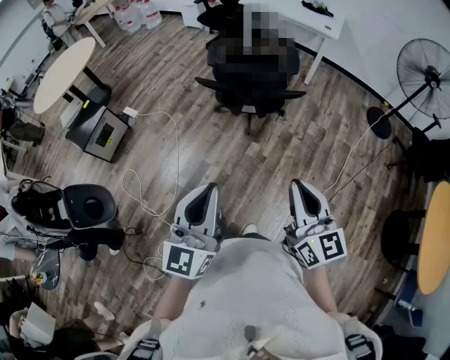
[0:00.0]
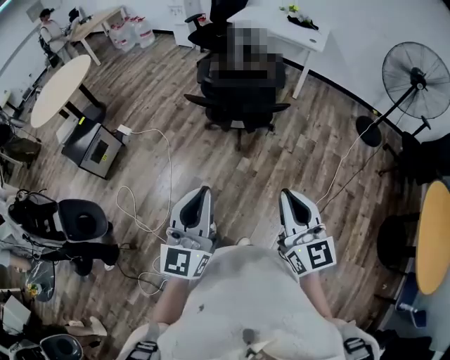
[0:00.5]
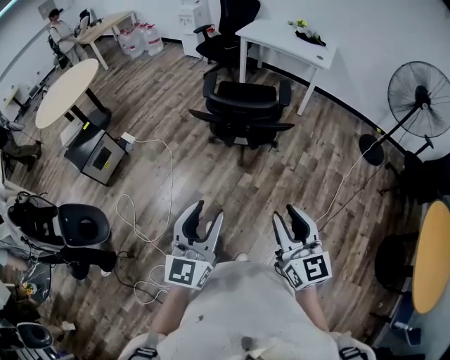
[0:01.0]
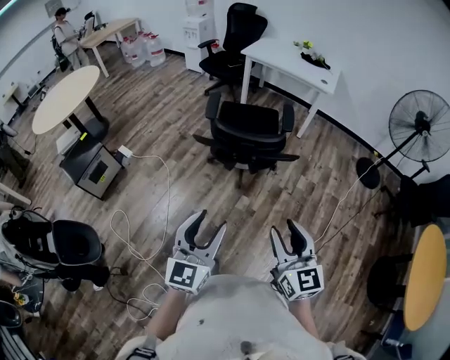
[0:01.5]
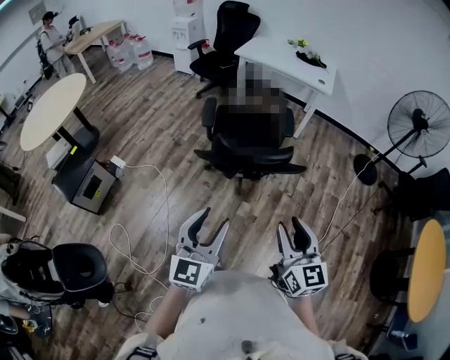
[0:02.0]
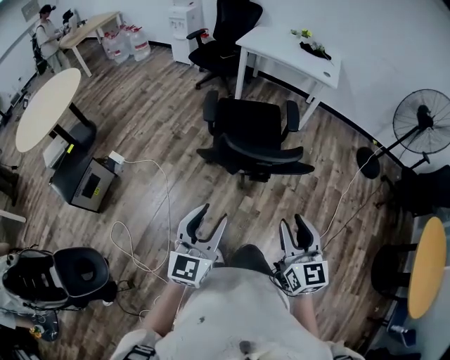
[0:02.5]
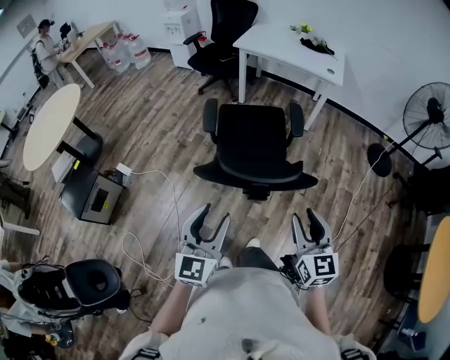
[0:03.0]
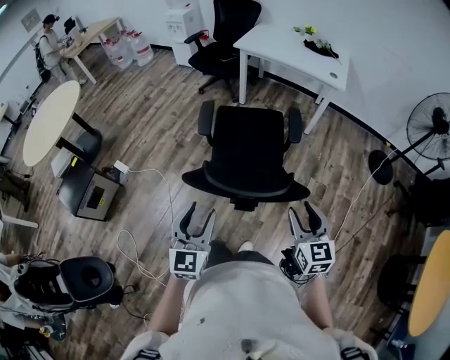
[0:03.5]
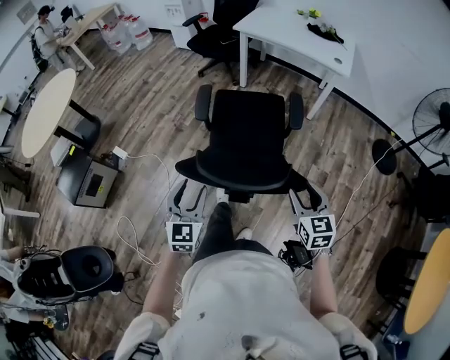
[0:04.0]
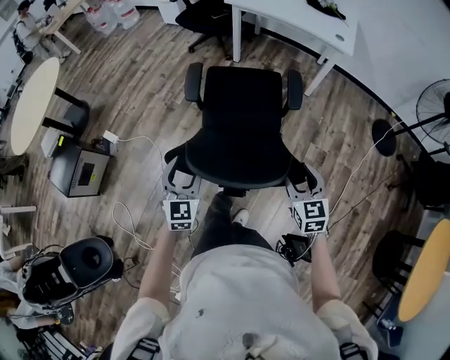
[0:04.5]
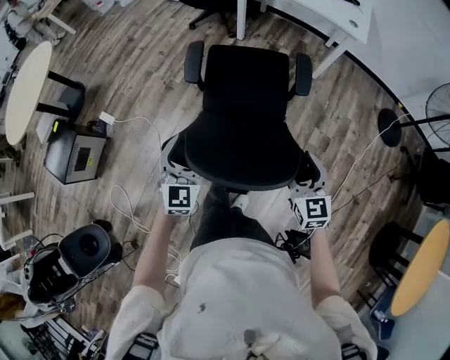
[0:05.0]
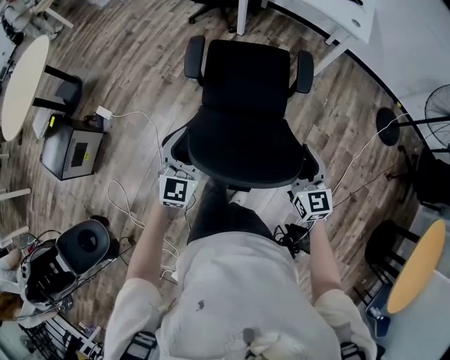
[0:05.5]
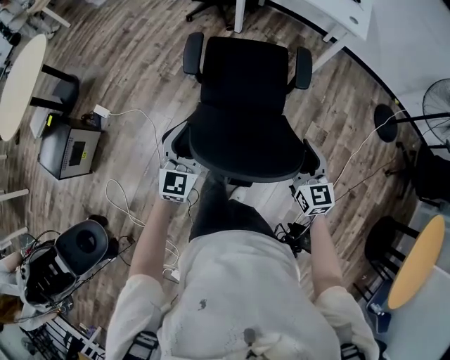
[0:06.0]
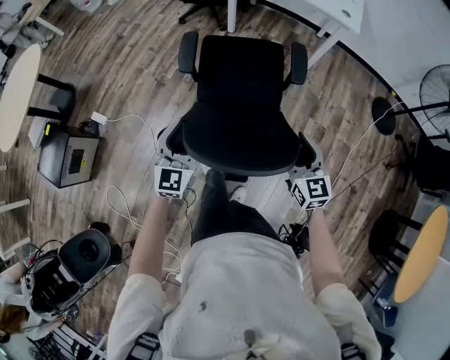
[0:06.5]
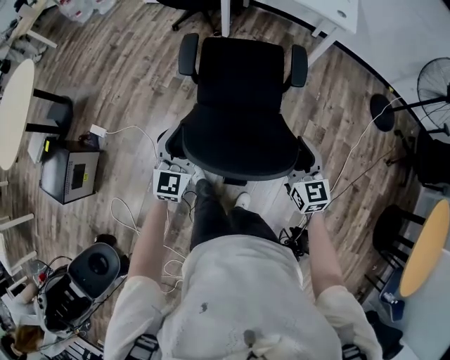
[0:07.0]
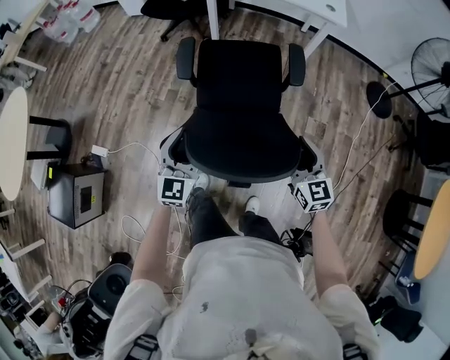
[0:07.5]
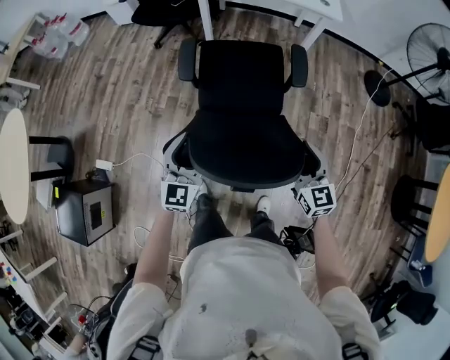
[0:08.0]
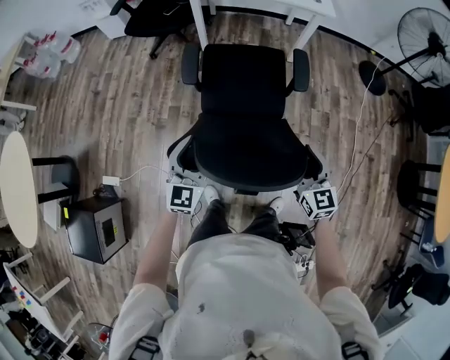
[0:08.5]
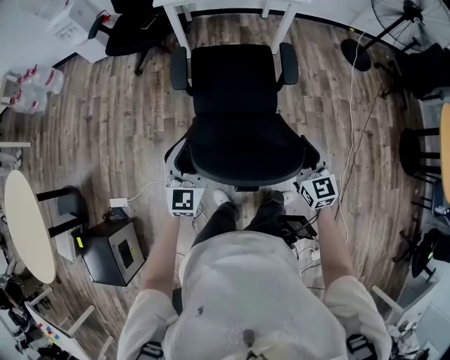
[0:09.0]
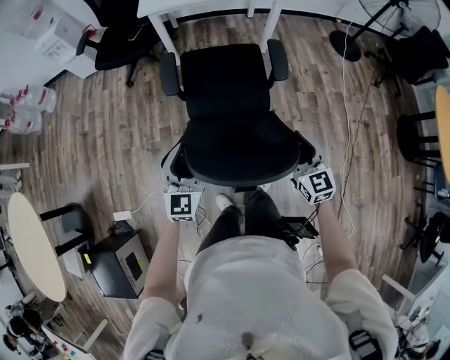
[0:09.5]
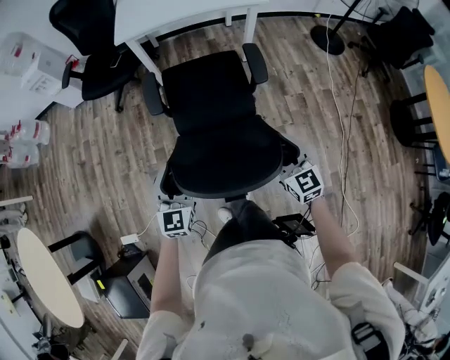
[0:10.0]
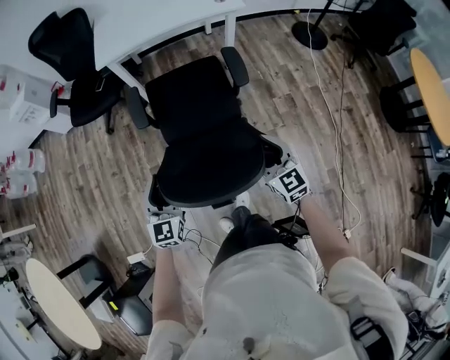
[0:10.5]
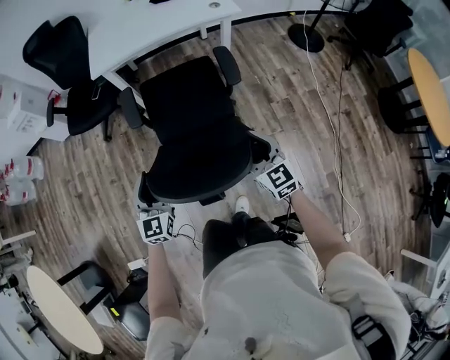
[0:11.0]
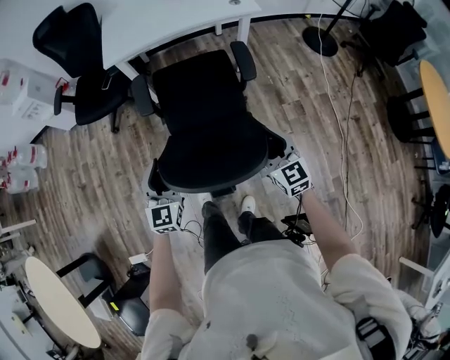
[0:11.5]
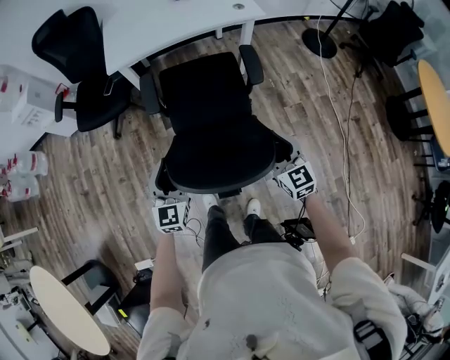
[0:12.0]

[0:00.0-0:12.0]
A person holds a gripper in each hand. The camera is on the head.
0:00.0 to 0:02.0: Both grippers move forward, roughly 25 cm. The right gripper opens up. The left gripper opens.
0:02.0 to 0:04.0: The left gripper travels forward by about 35 cm, and changes its angle by some 20 degrees; the right gripper moves forward and to the right, about 40 cm.
0:04.0 to 0:06.0: The grippers both shift forward and downward by approximately 20 cm.
0:06.0 to 0:08.0: Both grippers move forward and to the left, approximately 20 cm.
0:08.0 to 0:10.0: The right gripper heads to the left and forward, covering about 10 cm. Meanwhile the left gripper is displaced forward and to the left by some 15 cm.
0:10.0 to 0:12.0: Both grippers move forward, roughly 20 cm.

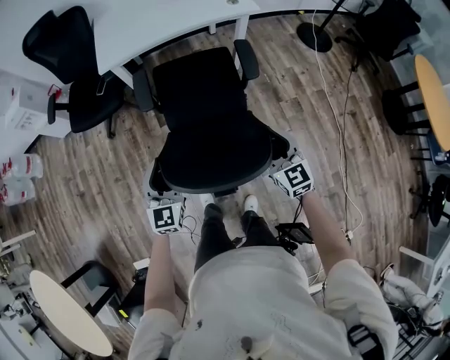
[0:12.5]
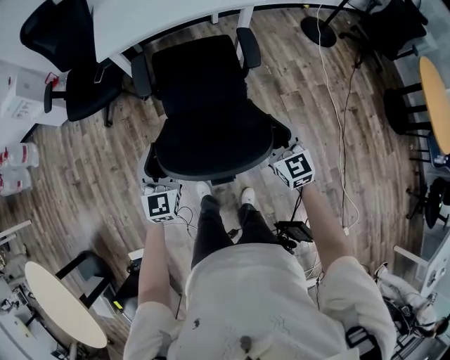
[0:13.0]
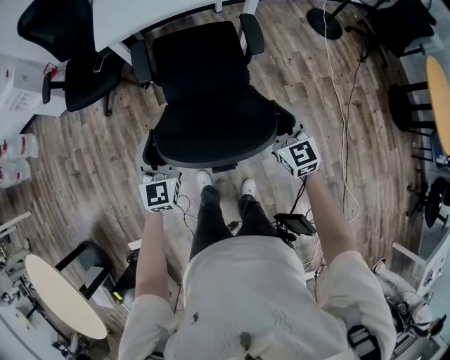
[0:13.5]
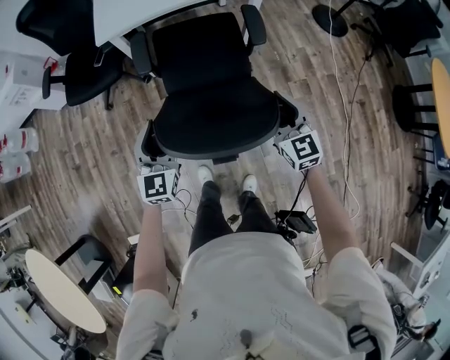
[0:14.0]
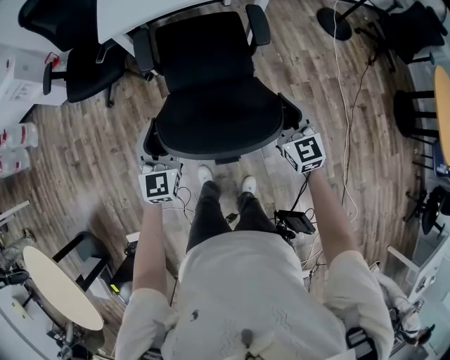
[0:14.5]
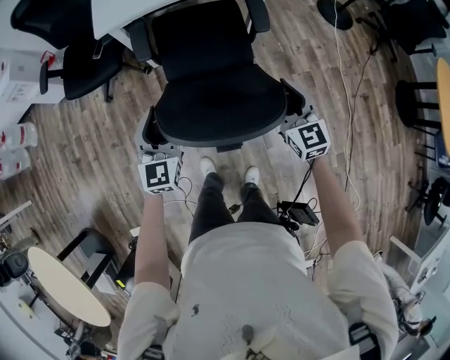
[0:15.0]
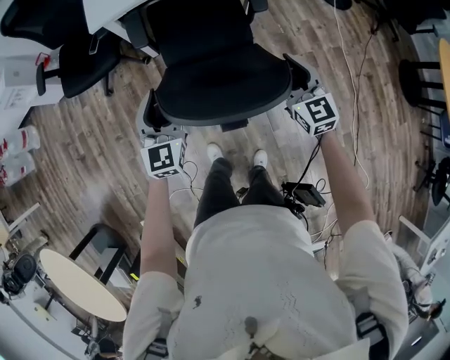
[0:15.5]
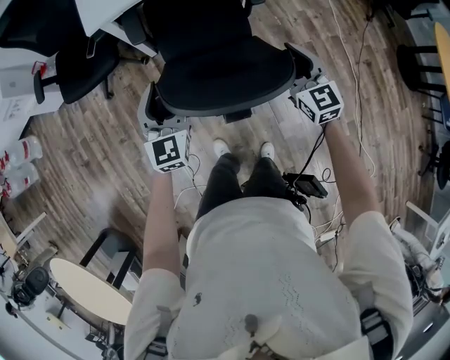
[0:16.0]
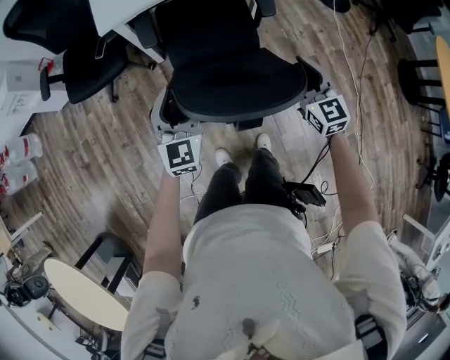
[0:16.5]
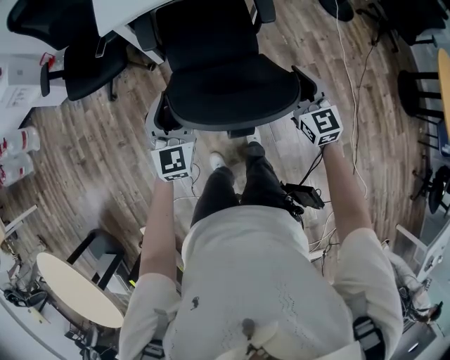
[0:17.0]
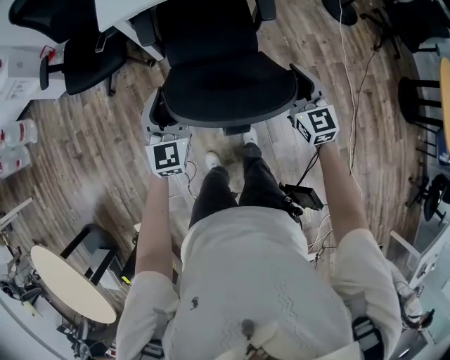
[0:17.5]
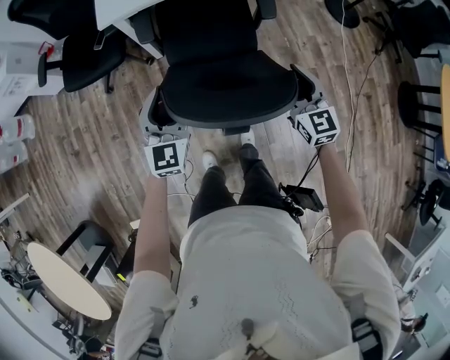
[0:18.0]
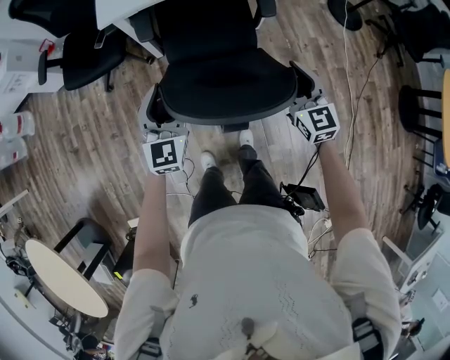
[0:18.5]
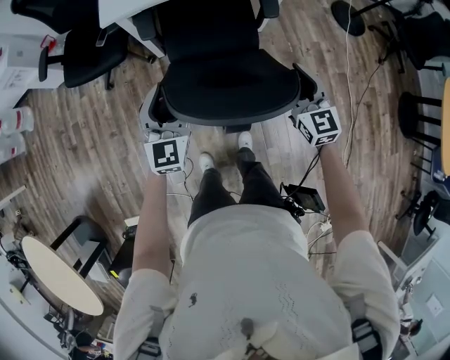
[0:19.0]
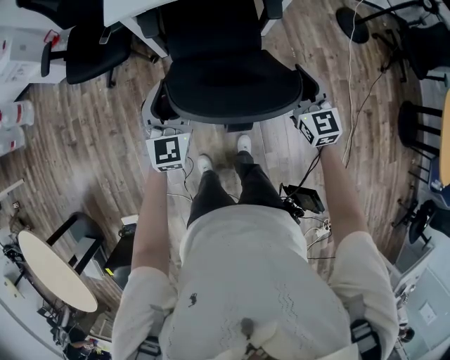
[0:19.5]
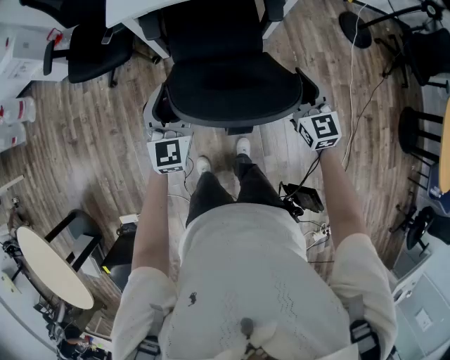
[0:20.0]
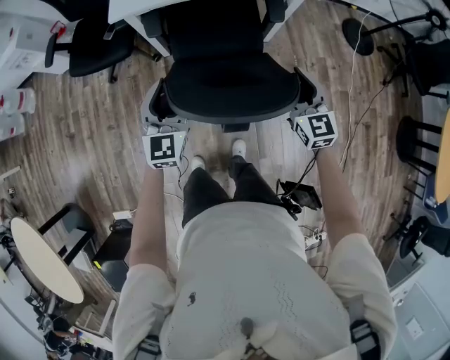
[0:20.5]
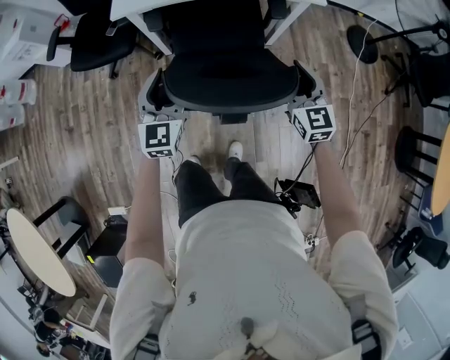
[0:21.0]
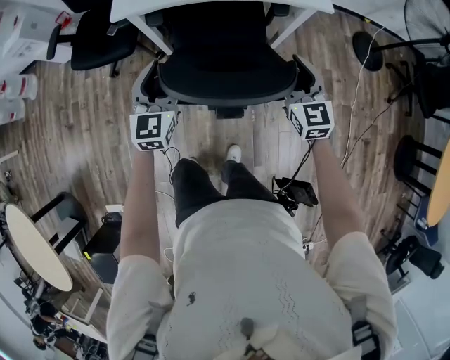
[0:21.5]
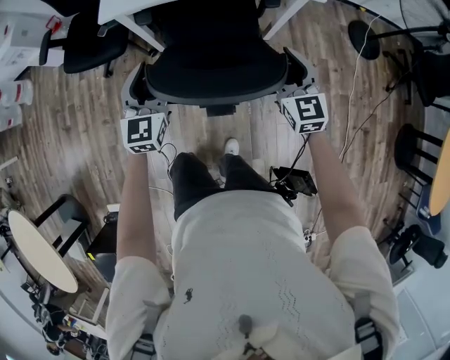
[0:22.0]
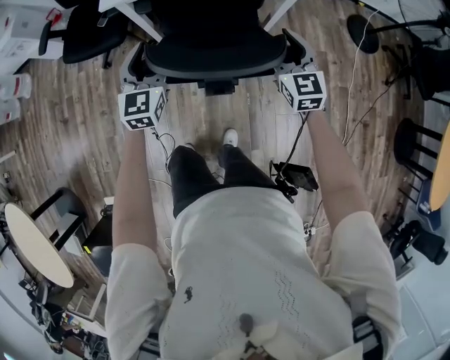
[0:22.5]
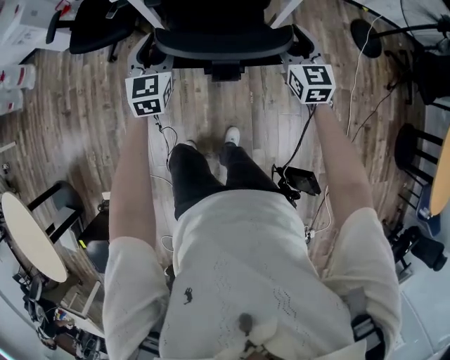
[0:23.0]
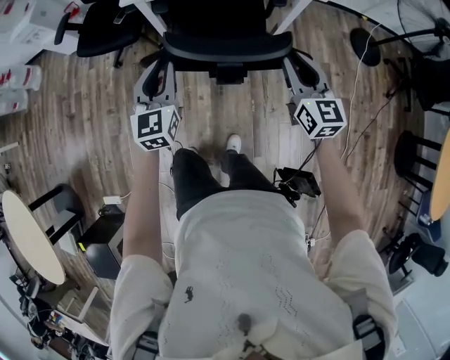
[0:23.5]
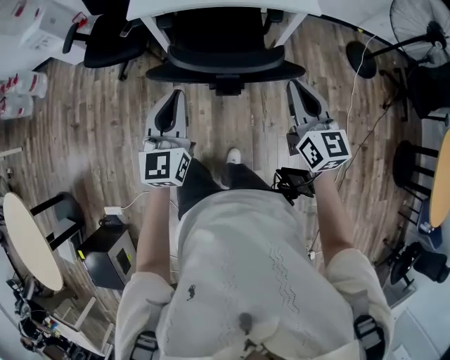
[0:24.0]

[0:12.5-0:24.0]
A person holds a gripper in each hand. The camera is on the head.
0:12.5 to 0:14.5: Both grippers travel together forward, approximately 10 cm.
0:14.5 to 0:16.5: The left gripper goes approximately 10 cm forward and to the left, while the right gripper goes some 10 cm to the left and forward.
0:16.5 to 0:18.5: The grippers both shift forward by some 5 cm.
0:18.5 to 0:20.0: The left gripper shifts by about 5 cm, while the right gripper moves forward, approximately 5 cm.
0:20.0 to 0:22.0: Both grippers move forward, some 15 cm.
0:22.0 to 0:24.0: Both grippers travel together backward and upward, approximately 25 cm. The right gripper closes its fingers. Meanwhile the left gripper closes its fingers.

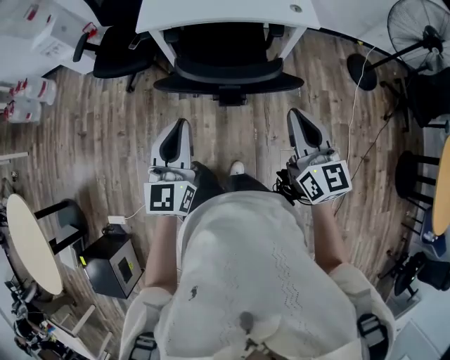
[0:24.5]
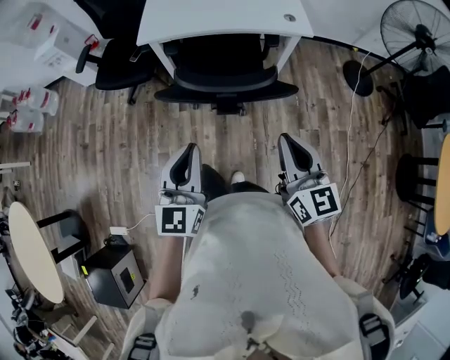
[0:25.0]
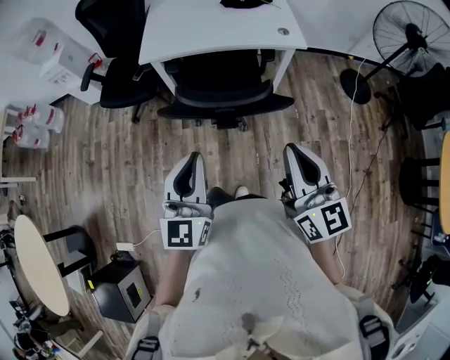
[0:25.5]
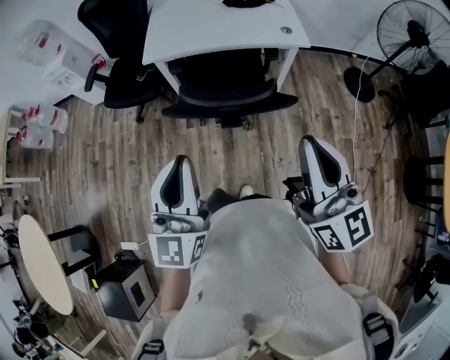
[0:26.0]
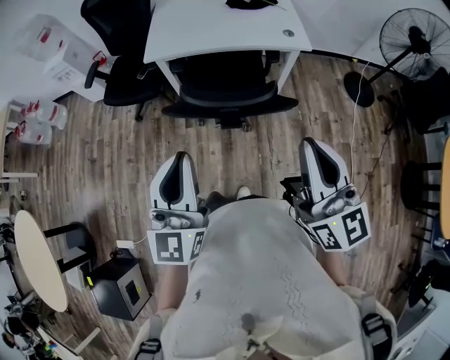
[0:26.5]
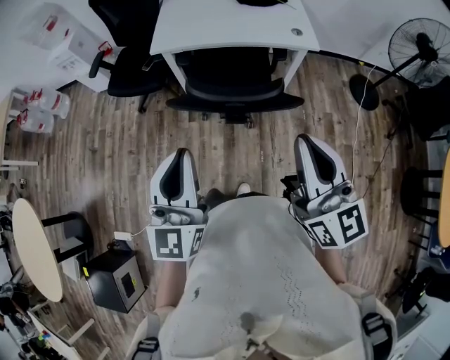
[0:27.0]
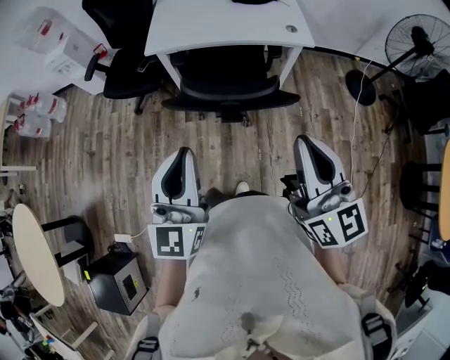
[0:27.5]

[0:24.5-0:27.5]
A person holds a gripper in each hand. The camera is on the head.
0:24.5 to 0:26.0: The grippers both shift upward and backward by about 15 cm.
0:26.0 to 0:27.5: The grippers move only a little.
